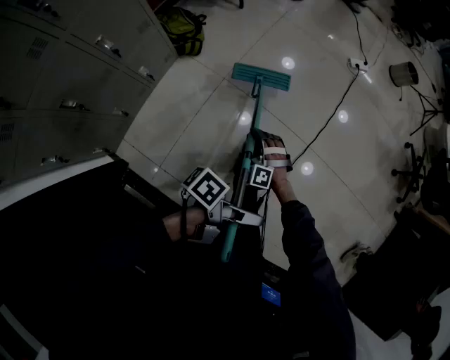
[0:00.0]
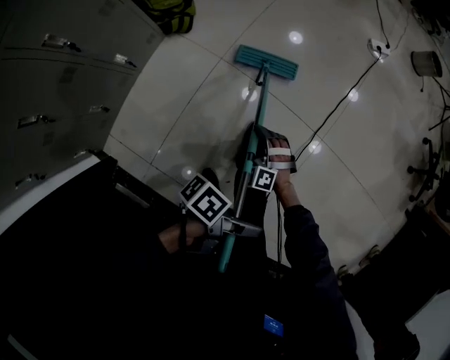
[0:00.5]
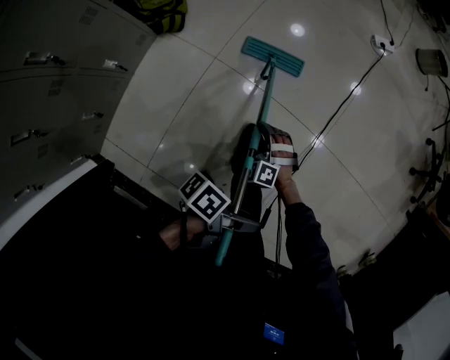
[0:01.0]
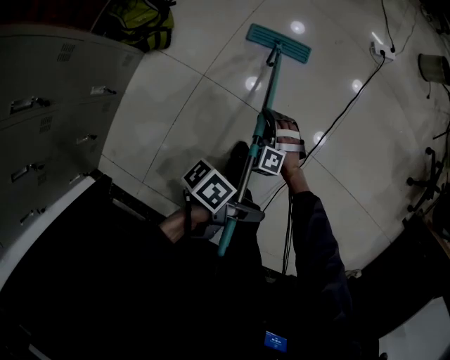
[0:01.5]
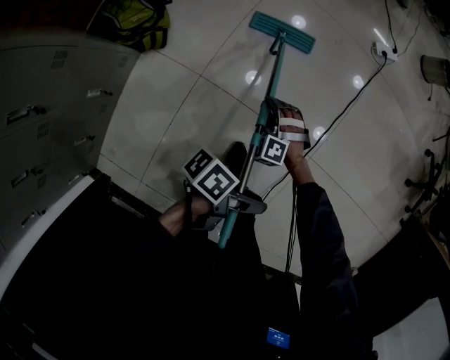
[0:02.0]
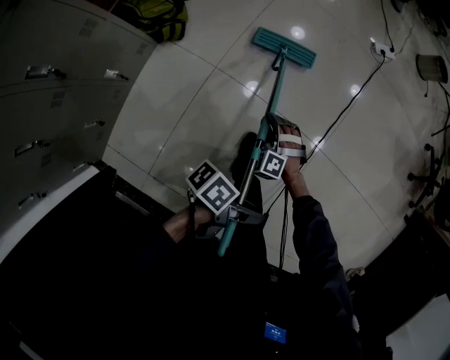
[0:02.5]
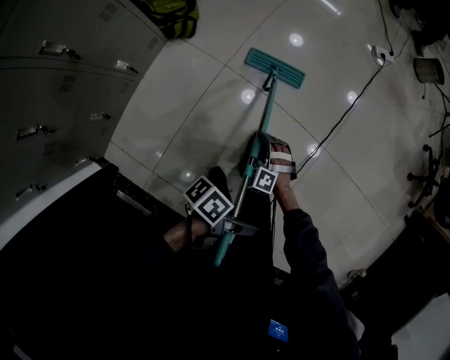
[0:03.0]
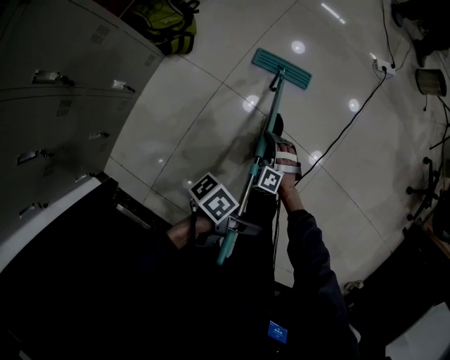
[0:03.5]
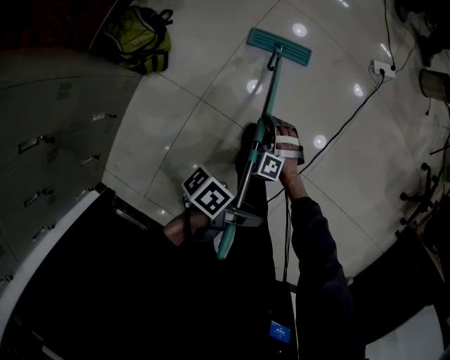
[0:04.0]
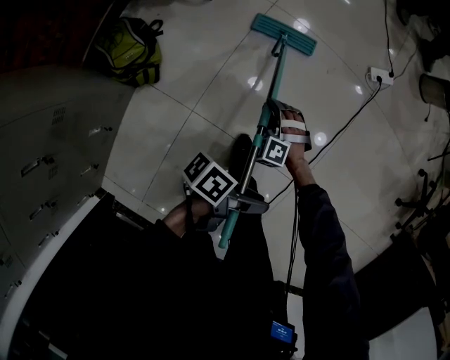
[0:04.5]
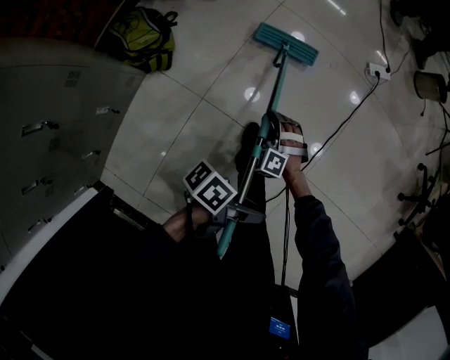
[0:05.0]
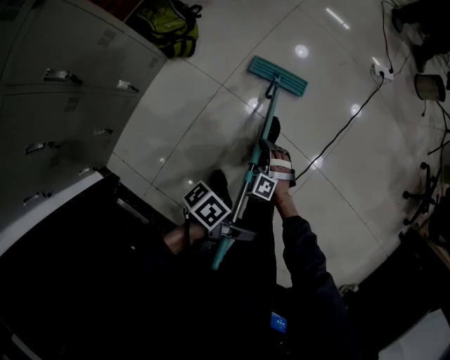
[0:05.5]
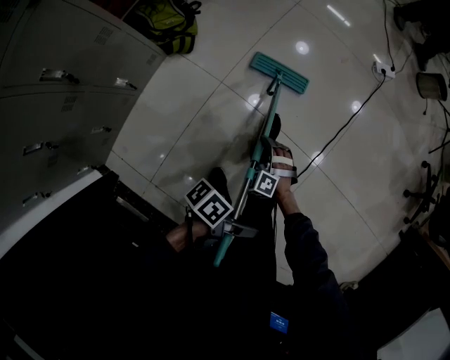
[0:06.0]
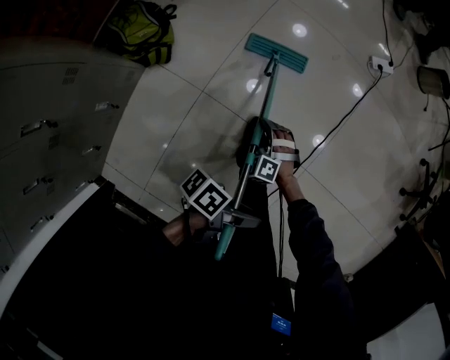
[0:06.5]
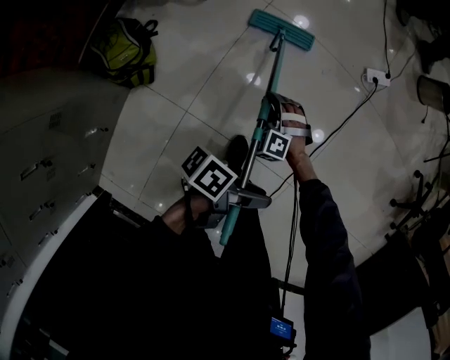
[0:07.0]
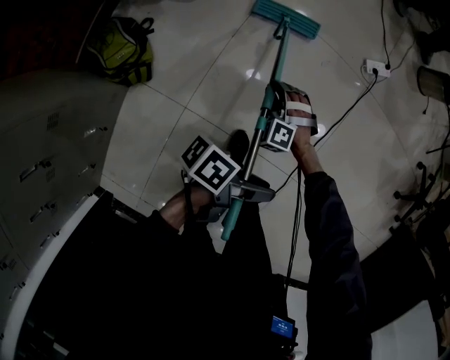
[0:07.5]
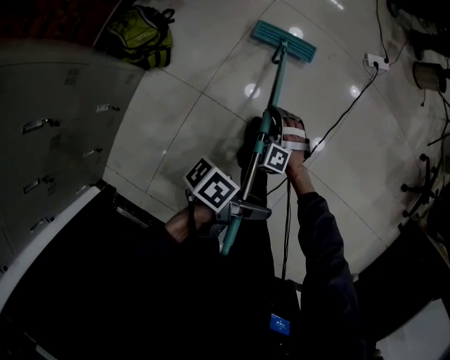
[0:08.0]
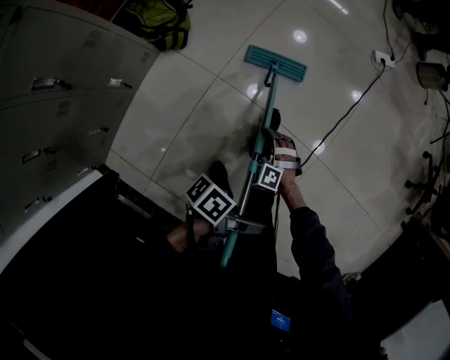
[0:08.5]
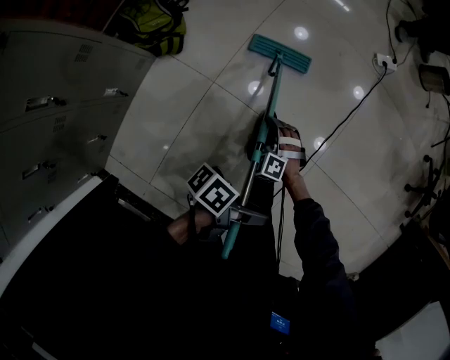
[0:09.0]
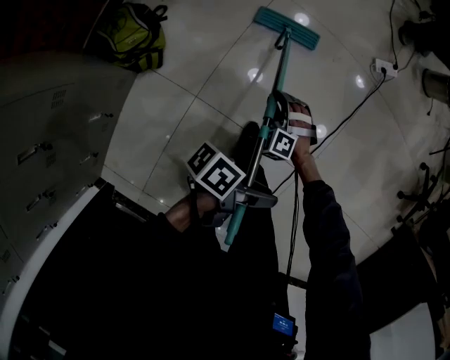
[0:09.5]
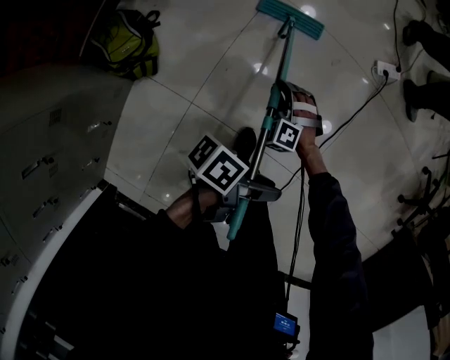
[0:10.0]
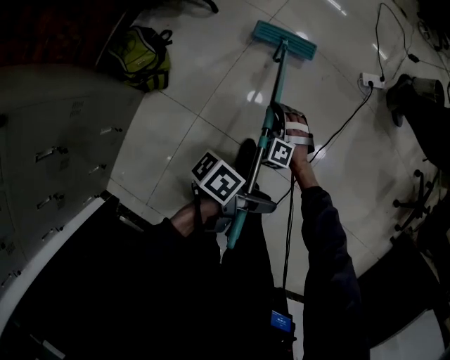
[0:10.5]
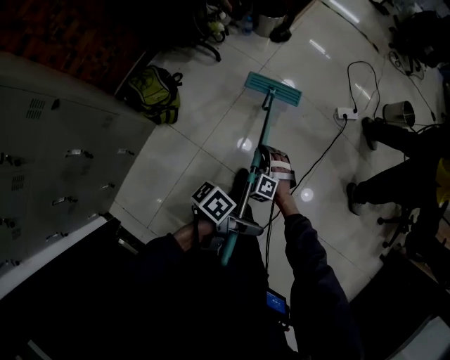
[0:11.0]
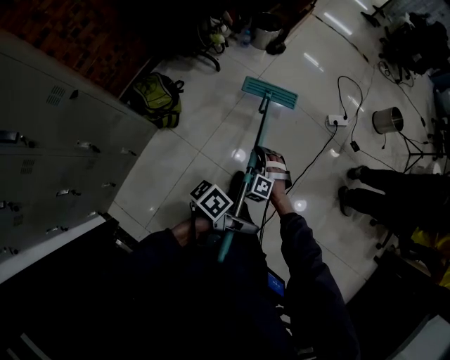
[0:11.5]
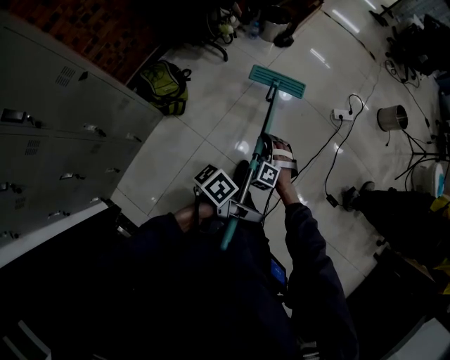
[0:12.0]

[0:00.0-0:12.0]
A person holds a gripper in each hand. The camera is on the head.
0:00.0 to 0:02.0: The right gripper ends up approximately 40 cm from where it was.
0:04.0 to 0:06.0: The right gripper shifts by some 25 cm.
0:08.0 to 0:10.0: The right gripper changes place by some 20 cm.
0:10.0 to 0:12.0: The right gripper travels upward by roughly 25 cm.

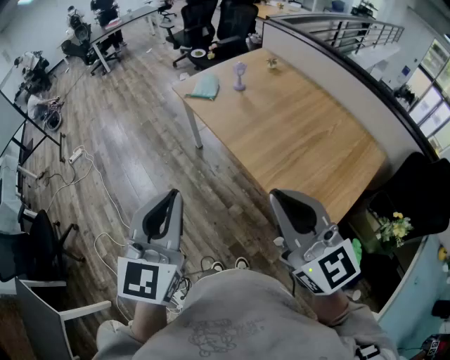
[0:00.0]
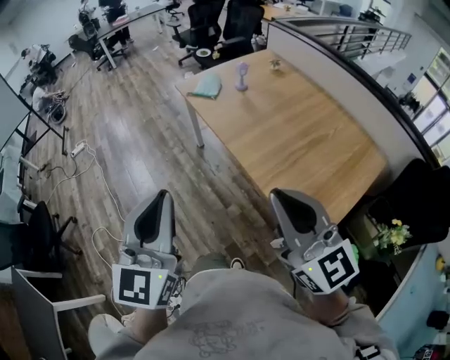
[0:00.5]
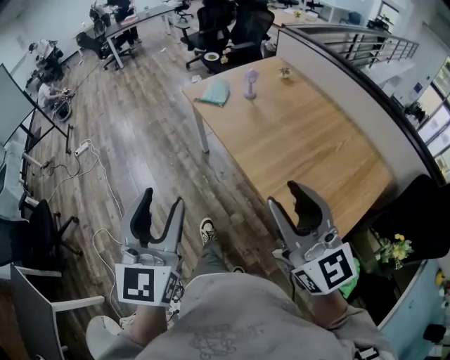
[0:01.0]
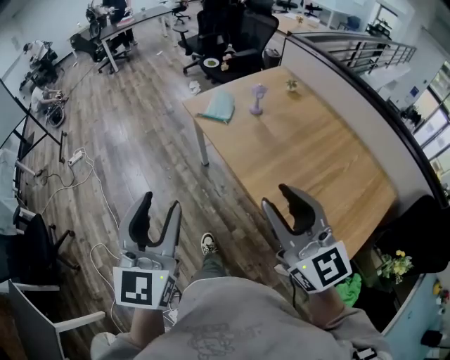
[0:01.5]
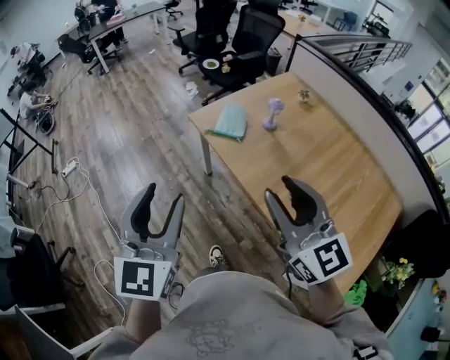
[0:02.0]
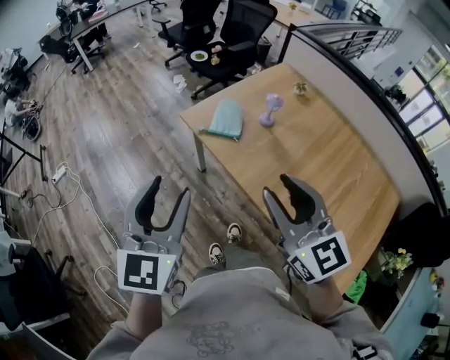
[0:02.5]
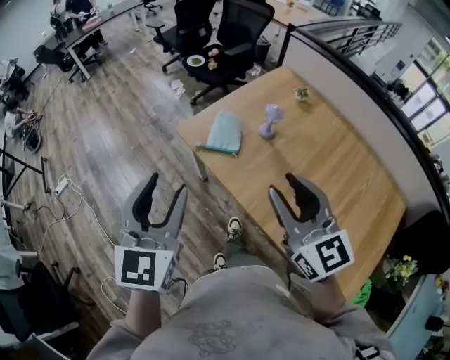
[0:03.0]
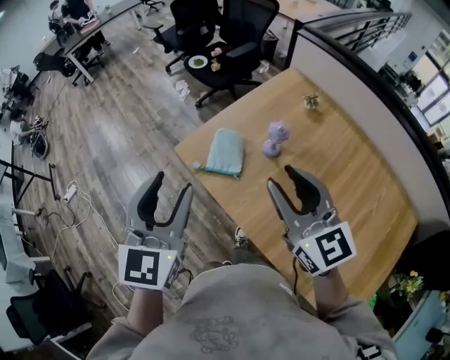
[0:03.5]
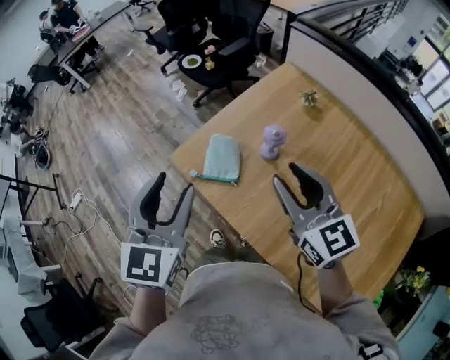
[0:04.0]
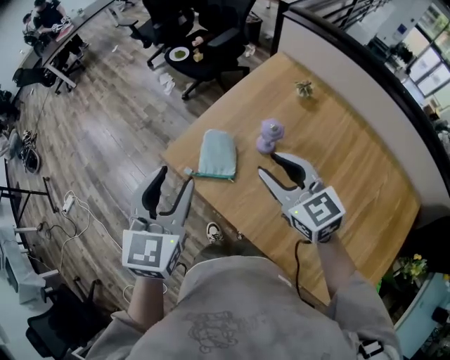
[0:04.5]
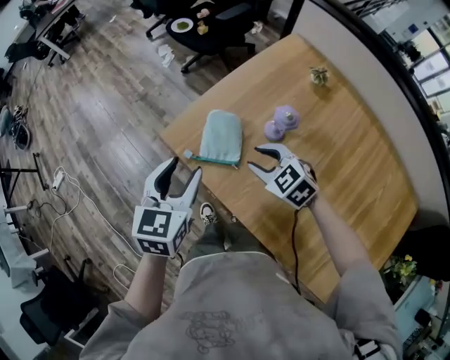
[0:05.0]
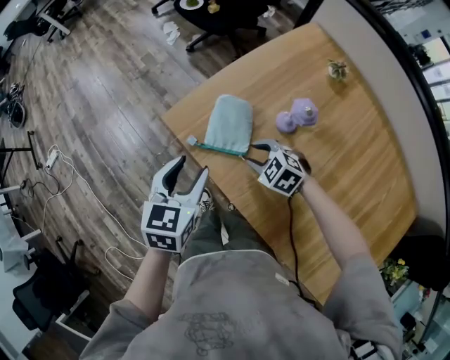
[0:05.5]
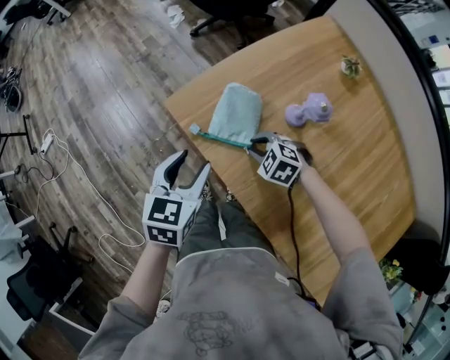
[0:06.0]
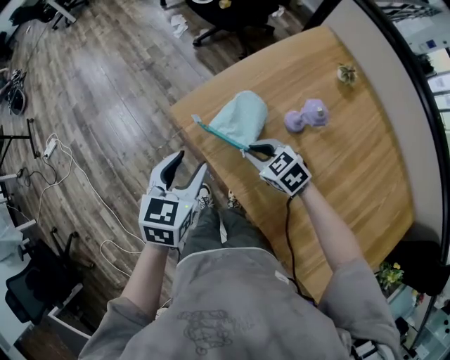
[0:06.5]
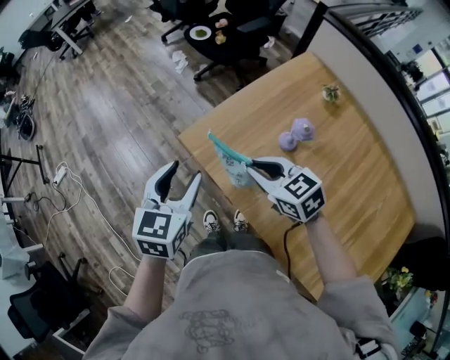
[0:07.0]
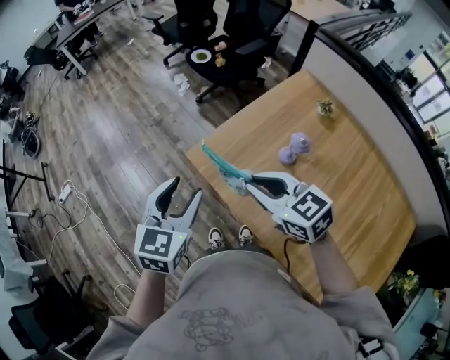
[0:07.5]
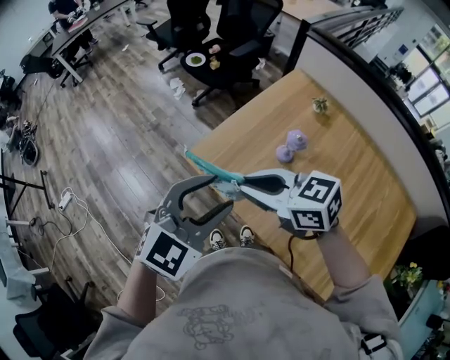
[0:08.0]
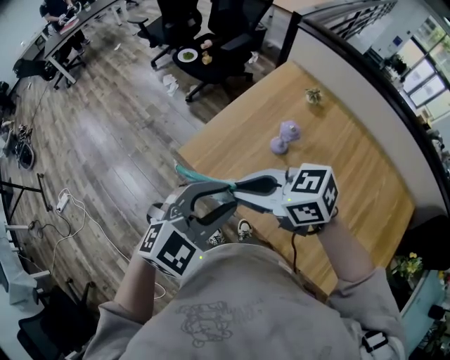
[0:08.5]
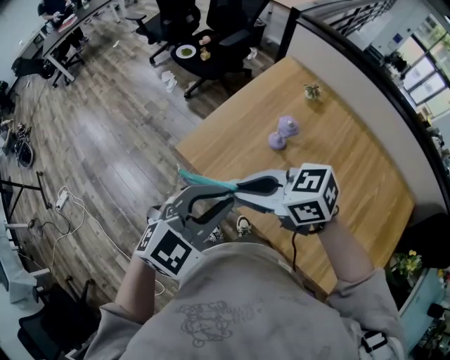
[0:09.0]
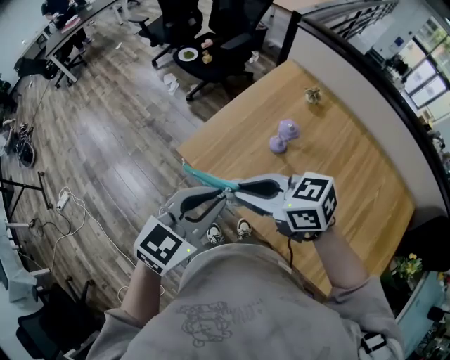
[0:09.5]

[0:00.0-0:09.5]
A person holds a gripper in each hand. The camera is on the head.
0:00.0 to 0:02.0: Both grippers move forward, approximately 35 cm. The left gripper opens its fingers; the right gripper opens up.
0:02.0 to 0:04.0: The two grippers go approximately 35 cm forward.
0:04.0 to 0:05.5: The left gripper heads downward, covering approximately 20 cm, and turns by some 30 degrees. Meanwhile the right gripper goes approximately 35 cm downward, and tilts its fingers roughly 50 degrees downward.
0:05.5 to 0:07.5: The left gripper is displaced upward and to the left by about 15 cm, while the right gripper travels upward by some 25 cm, tips its fingers upward by approximately 30 degrees, and closes its fingers.
0:07.5 to 0:09.5: The right gripper changes place by roughly 5 cm. The left gripper shifts by roughly 10 cm, swivels some 30 degrees, and closes its fingers.

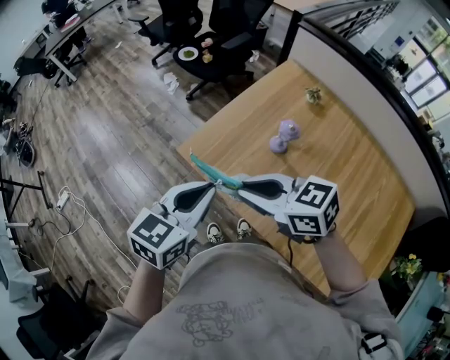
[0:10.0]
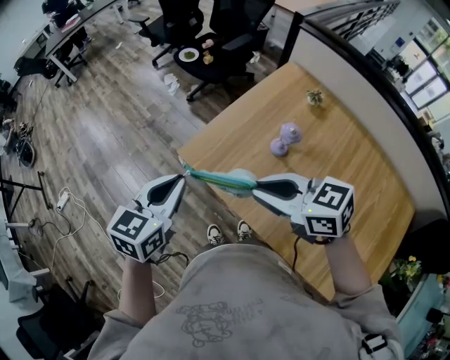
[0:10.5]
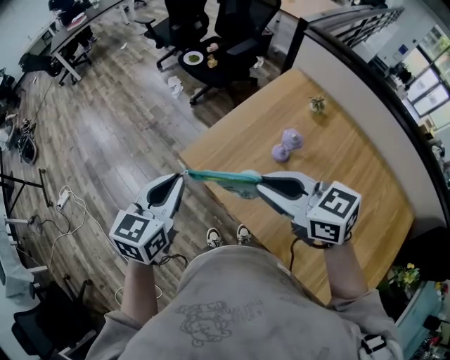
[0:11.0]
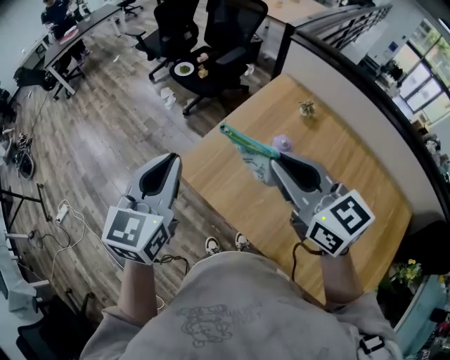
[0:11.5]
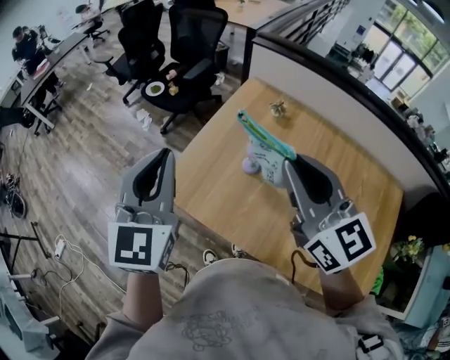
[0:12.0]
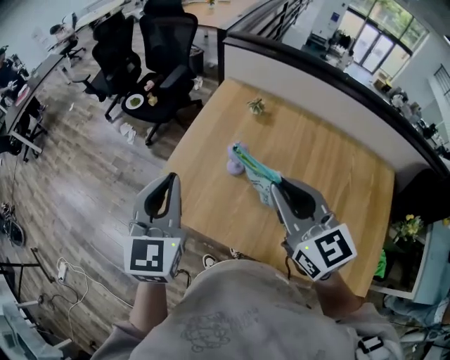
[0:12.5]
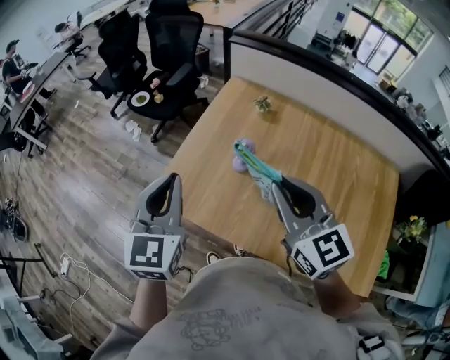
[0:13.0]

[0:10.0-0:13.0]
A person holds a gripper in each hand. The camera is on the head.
0:10.0 to 0:11.5: The right gripper heads upward and to the right, covering roughly 15 cm, and rotates approximately 30 degrees. The left gripper travels upward and forward by approximately 15 cm, and changes its angle by approximately 20 degrees.
0:11.5 to 0:13.0: The two grippers go approximately 10 cm to the right. The right gripper turns by about 30 degrees.

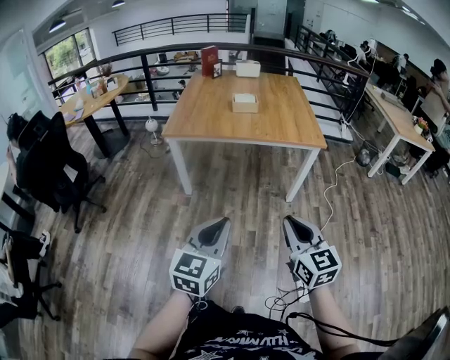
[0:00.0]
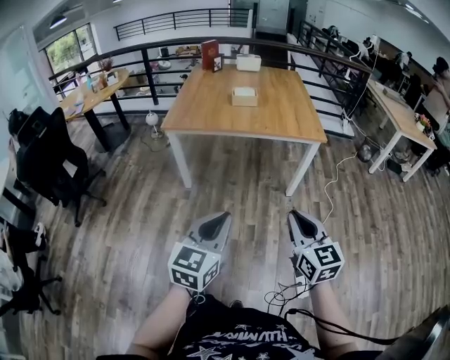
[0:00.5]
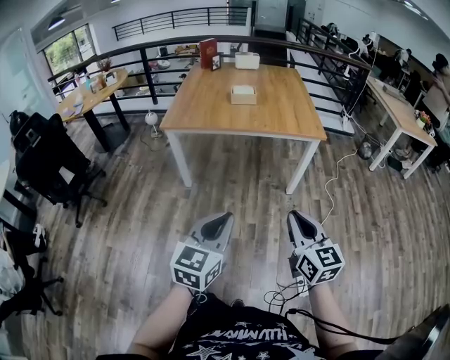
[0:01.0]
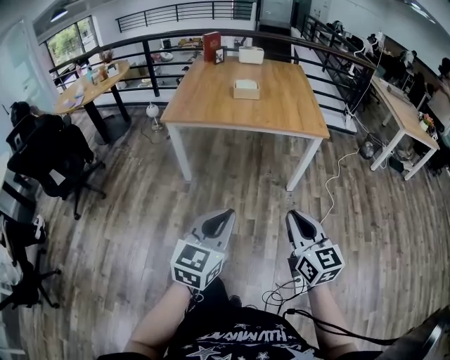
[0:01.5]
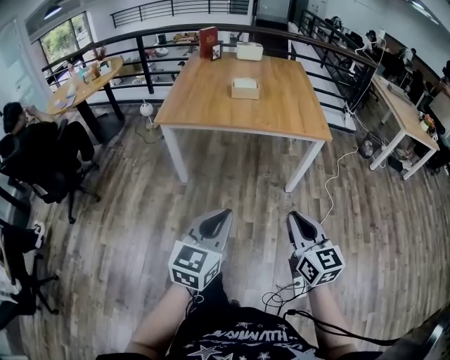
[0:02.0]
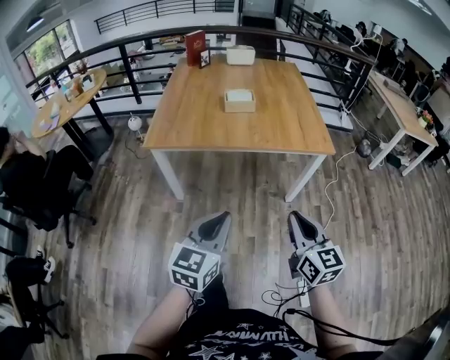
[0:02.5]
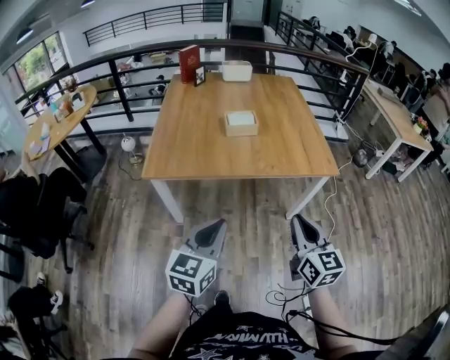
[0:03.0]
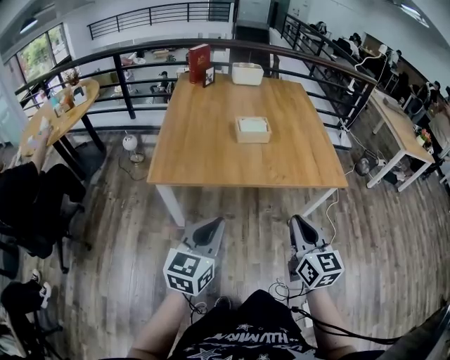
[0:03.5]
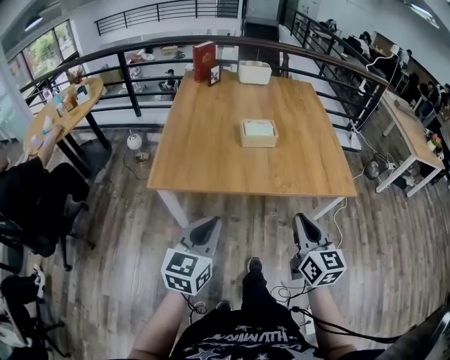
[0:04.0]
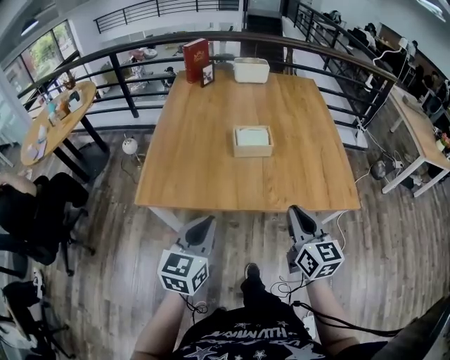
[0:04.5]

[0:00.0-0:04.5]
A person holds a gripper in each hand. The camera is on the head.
0:00.0 to 0:02.0: The grippers both shift forward by about 10 cm.
0:02.0 to 0:04.5: The two grippers travel together, forward, approximately 50 cm.
